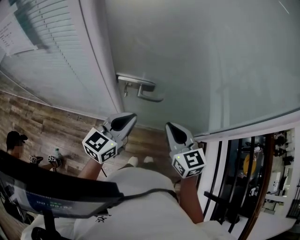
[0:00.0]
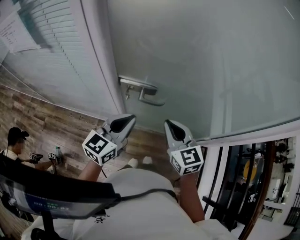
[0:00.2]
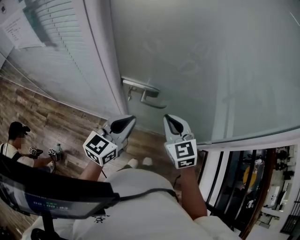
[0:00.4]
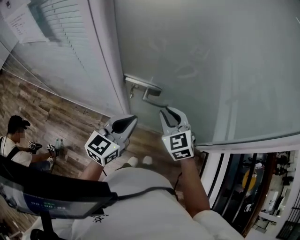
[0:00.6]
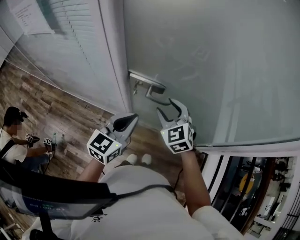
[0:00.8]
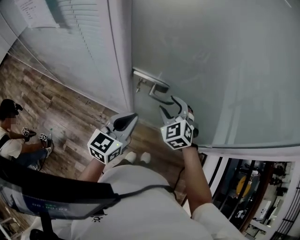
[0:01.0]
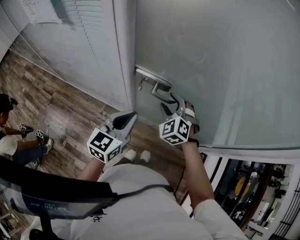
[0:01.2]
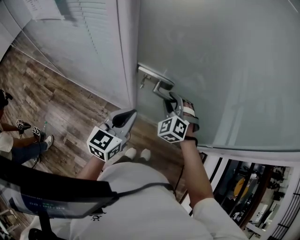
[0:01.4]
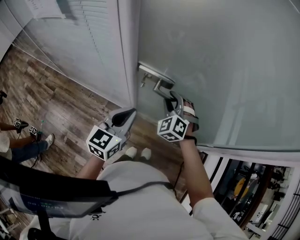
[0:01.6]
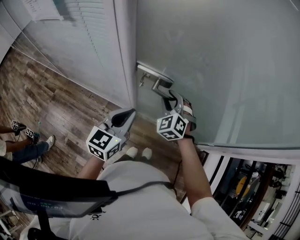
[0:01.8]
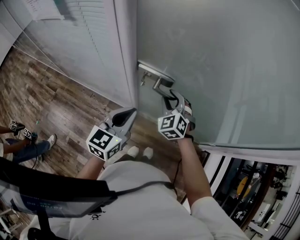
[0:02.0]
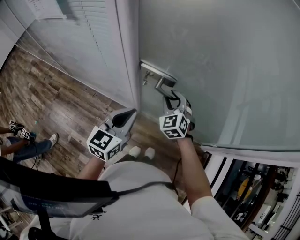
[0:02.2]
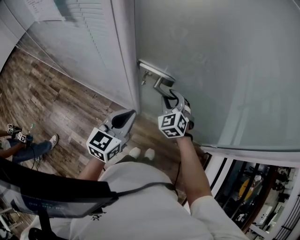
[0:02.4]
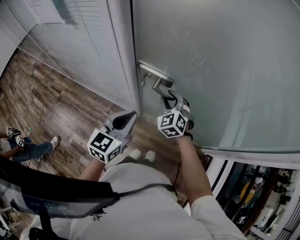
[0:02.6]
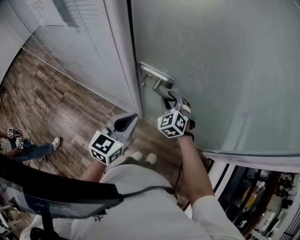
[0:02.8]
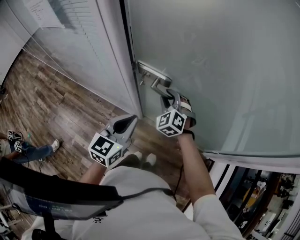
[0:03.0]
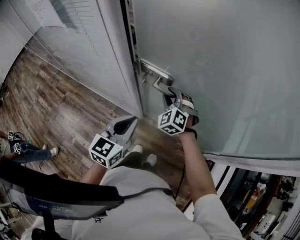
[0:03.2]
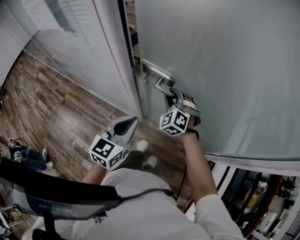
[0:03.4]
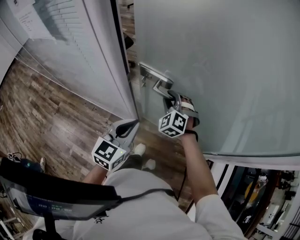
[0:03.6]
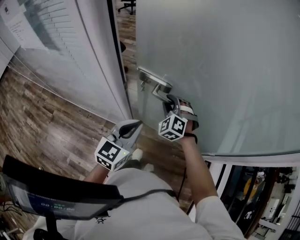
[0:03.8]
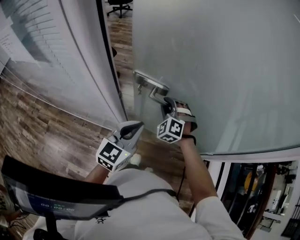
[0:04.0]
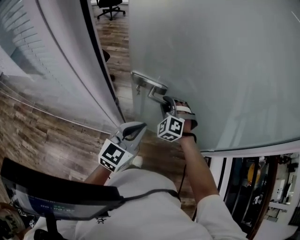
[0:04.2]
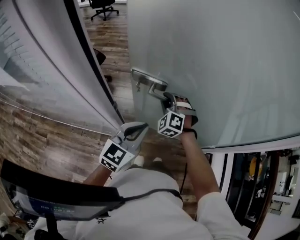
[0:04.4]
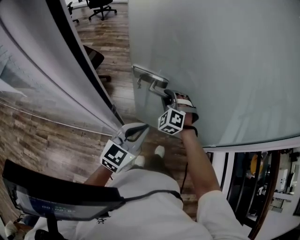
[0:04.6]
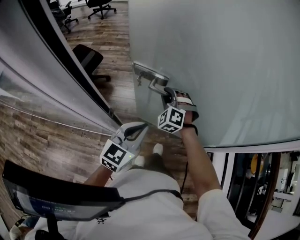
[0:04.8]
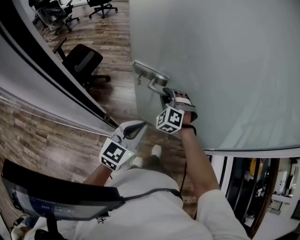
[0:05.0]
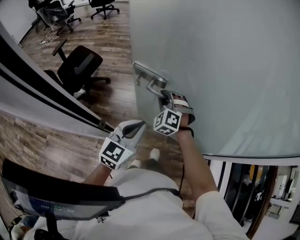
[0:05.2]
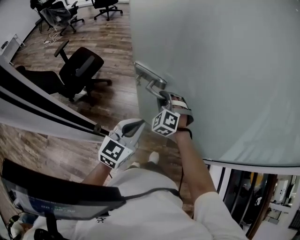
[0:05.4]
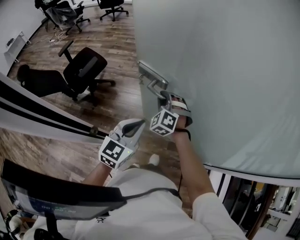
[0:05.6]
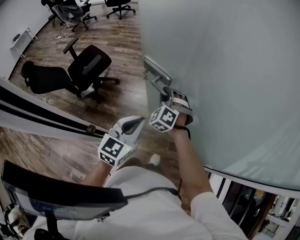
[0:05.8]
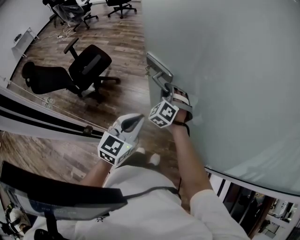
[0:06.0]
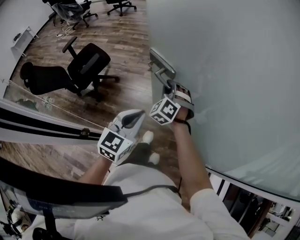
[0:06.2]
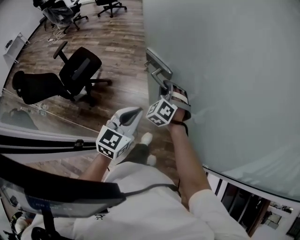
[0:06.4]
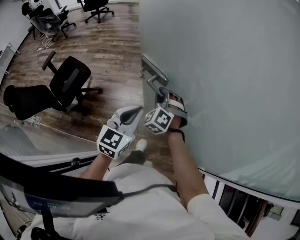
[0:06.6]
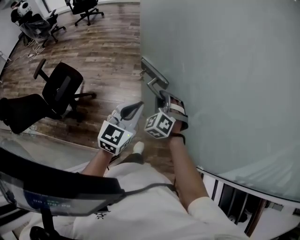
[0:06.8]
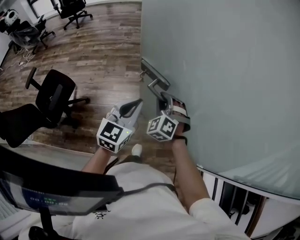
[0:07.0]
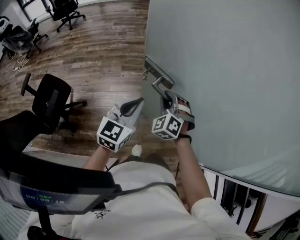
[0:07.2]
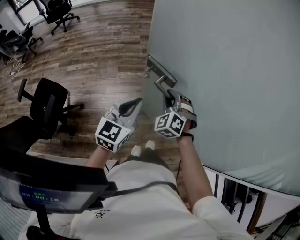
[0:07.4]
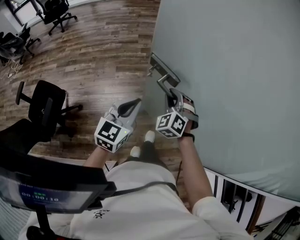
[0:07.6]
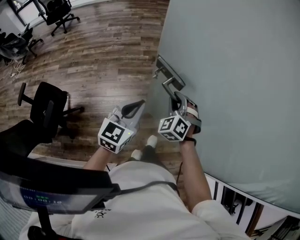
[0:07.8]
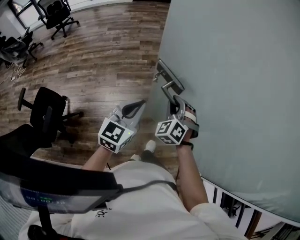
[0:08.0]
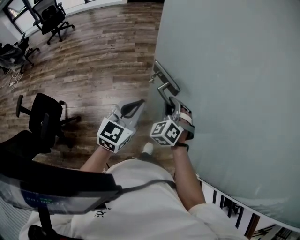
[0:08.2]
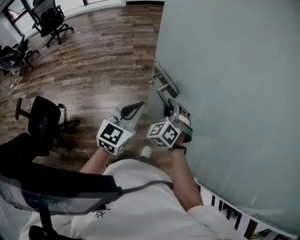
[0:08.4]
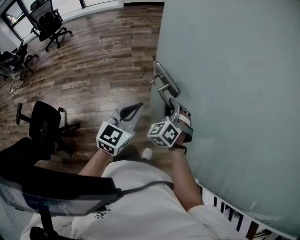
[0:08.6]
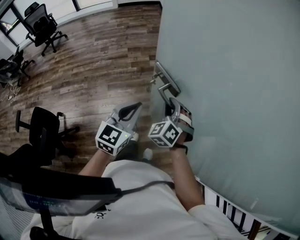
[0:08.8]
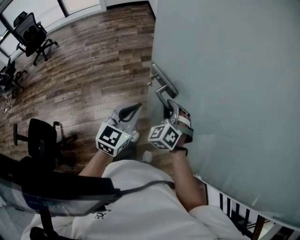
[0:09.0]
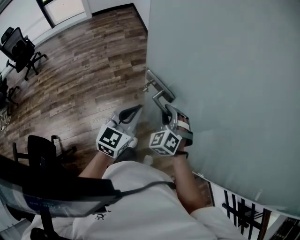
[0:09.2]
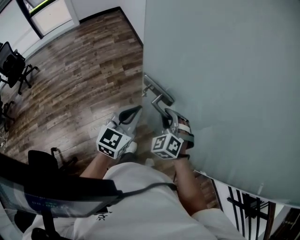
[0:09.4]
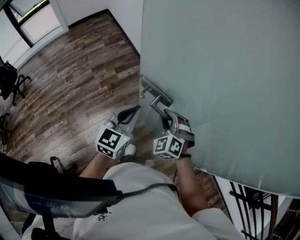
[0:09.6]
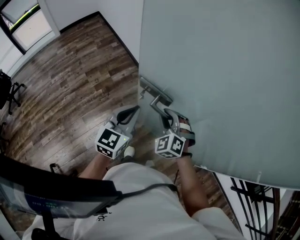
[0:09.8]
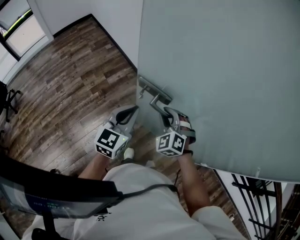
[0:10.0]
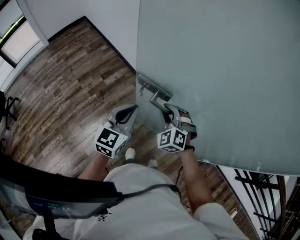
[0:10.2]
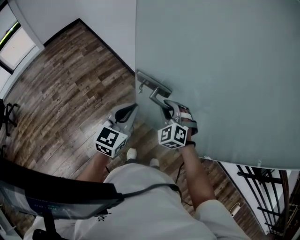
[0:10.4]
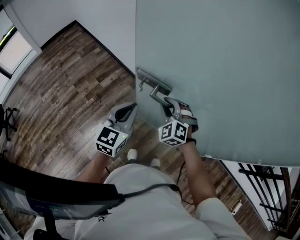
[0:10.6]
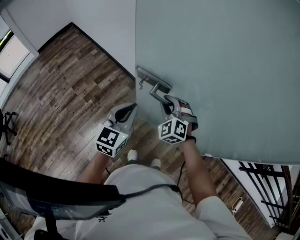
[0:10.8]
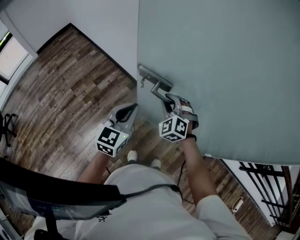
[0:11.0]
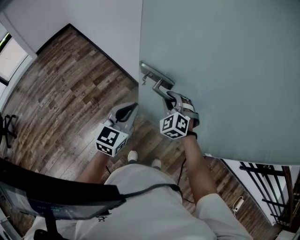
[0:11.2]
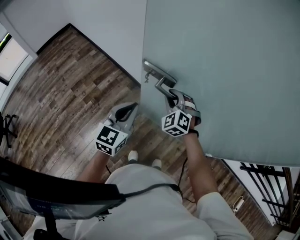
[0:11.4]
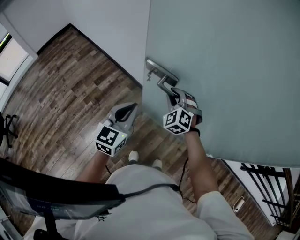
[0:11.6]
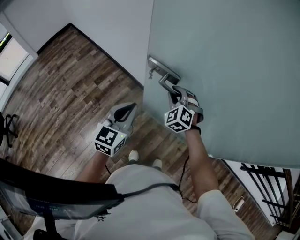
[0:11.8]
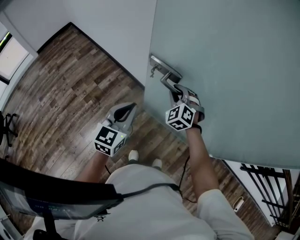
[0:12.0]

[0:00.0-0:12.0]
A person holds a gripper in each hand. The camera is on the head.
0:00.0 to 0:01.6: The right gripper shifts roughly 15 cm forward, downward and to the left, rotates around the line of its fingers by about 60 degrees, counterclockwise from behind, and opens, while the left gripper rotates about 20 degrees.
0:01.6 to 0:03.0: There are only small adjustments of the grippers.
0:03.0 to 0:04.4: The grippers both shift forward by approximately 15 cm. The left gripper turns by about 30 degrees; the right gripper swivels some 20 degrees.
0:04.4 to 0:06.0: Both grippers travel together forward, about 20 cm.
0:06.0 to 0:07.6: The two grippers go some 30 cm forward. The left gripper rotates some 20 degrees. The right gripper swivels about 20 degrees.
0:07.6 to 0:09.0: The right gripper is displaced forward and to the right by some 20 cm; the left gripper heads forward, covering roughly 25 cm.
0:09.0 to 0:10.4: The grippers both shift forward by approximately 10 cm. The left gripper swivels about 30 degrees.
0:10.4 to 0:12.0: The right gripper goes about 10 cm forward.

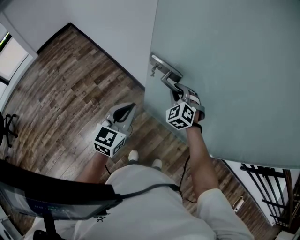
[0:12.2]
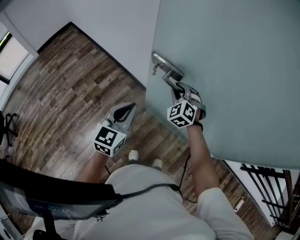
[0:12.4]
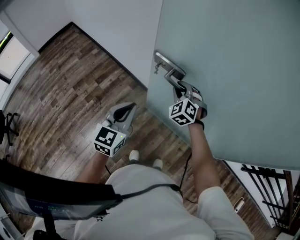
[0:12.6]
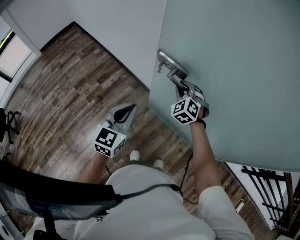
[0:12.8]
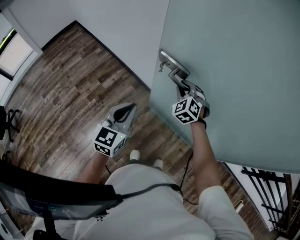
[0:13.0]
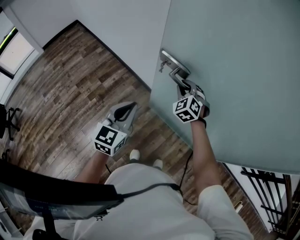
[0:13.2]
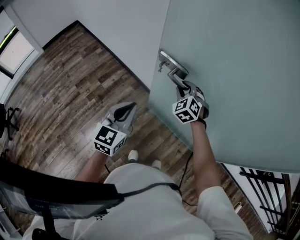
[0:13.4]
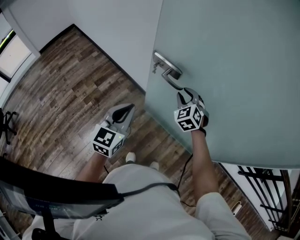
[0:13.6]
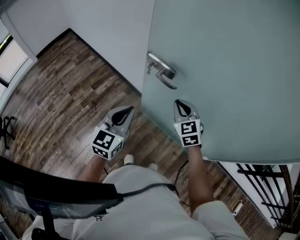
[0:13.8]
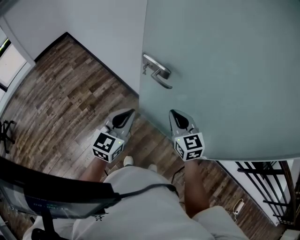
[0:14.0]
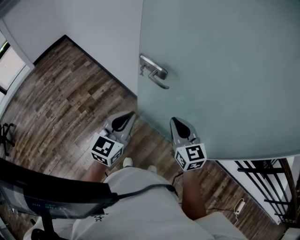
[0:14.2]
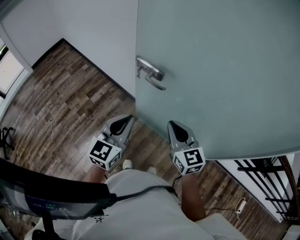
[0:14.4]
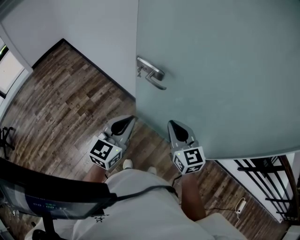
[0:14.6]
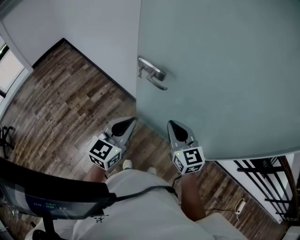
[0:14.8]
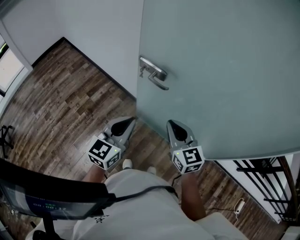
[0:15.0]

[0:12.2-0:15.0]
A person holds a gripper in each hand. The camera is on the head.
0:12.2 to 0:13.6: The grippers stay close to where they were, moving slightly.
0:13.6 to 0:15.0: The left gripper heads to the right, covering about 5 cm, while the right gripper travels backward and upward by about 15 cm, changes its angle by some 40 degrees, and closes its fingers.

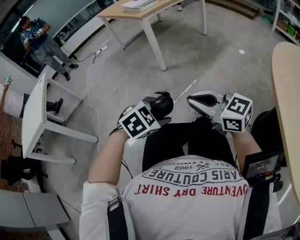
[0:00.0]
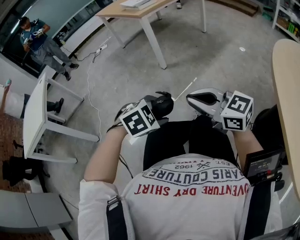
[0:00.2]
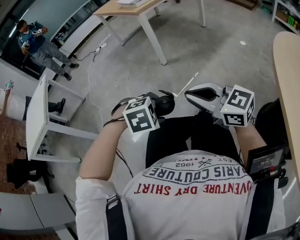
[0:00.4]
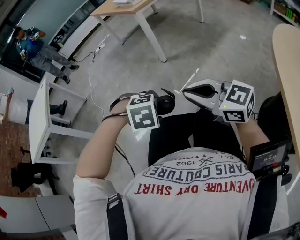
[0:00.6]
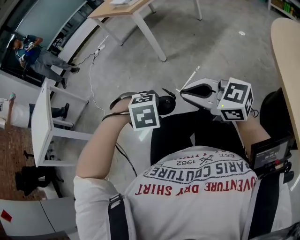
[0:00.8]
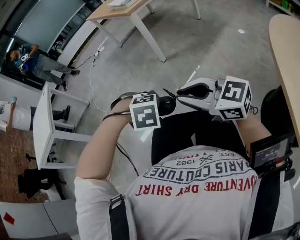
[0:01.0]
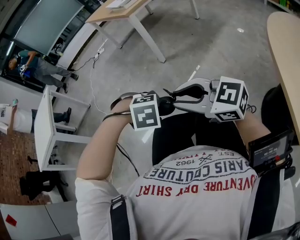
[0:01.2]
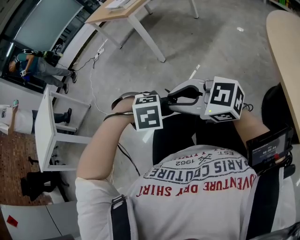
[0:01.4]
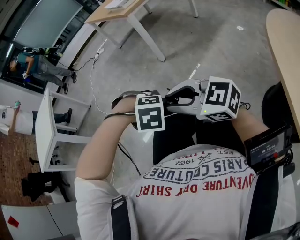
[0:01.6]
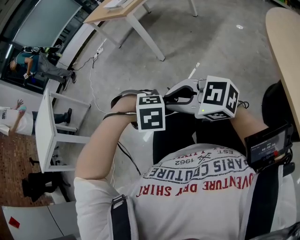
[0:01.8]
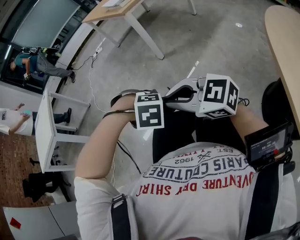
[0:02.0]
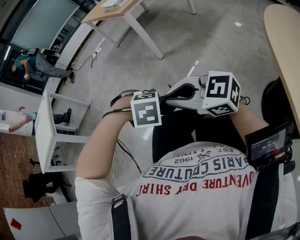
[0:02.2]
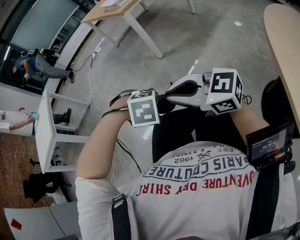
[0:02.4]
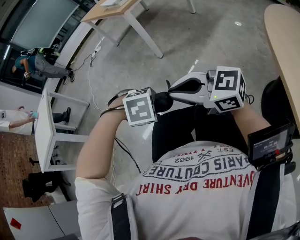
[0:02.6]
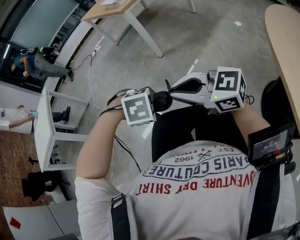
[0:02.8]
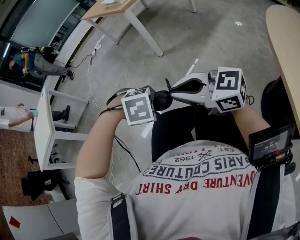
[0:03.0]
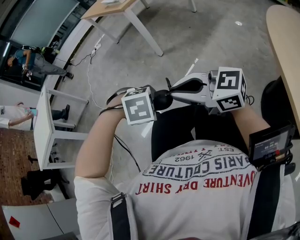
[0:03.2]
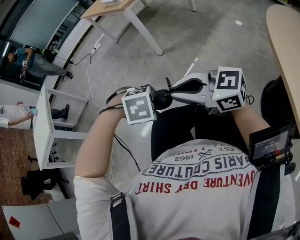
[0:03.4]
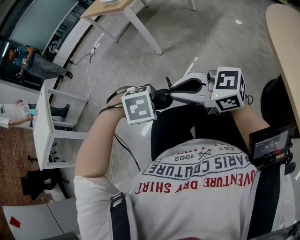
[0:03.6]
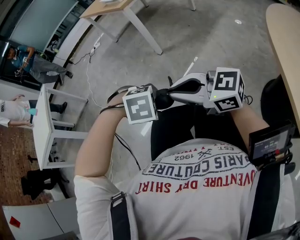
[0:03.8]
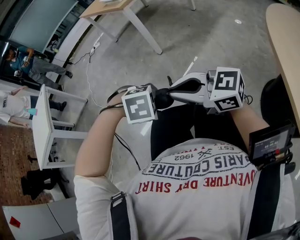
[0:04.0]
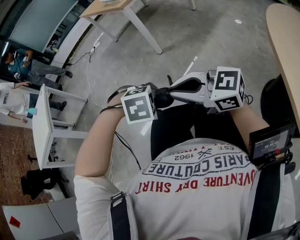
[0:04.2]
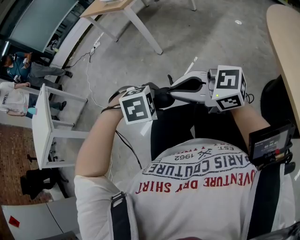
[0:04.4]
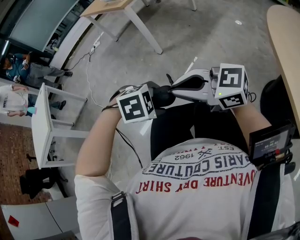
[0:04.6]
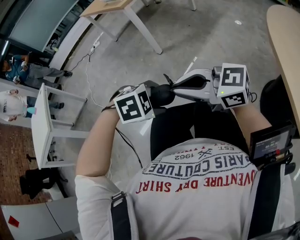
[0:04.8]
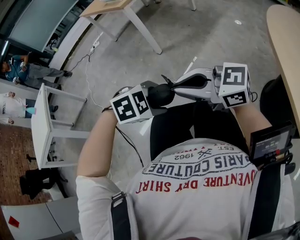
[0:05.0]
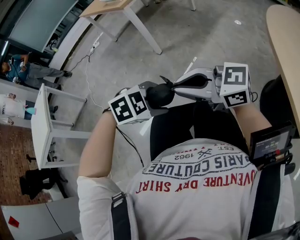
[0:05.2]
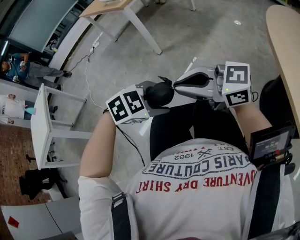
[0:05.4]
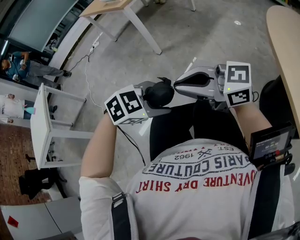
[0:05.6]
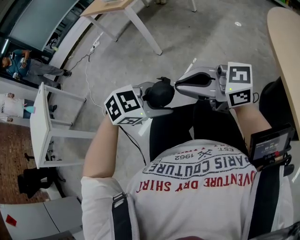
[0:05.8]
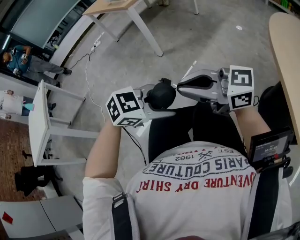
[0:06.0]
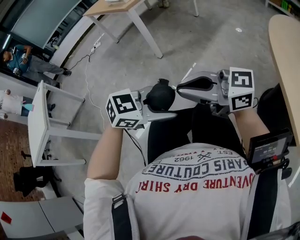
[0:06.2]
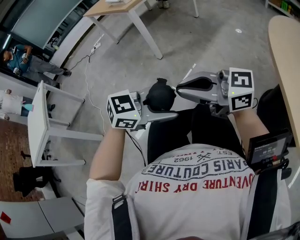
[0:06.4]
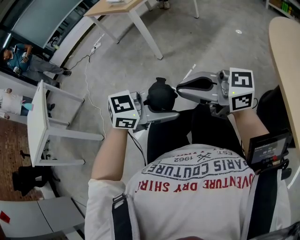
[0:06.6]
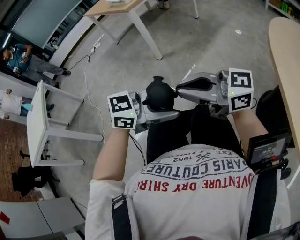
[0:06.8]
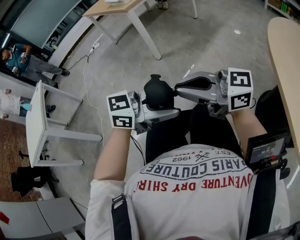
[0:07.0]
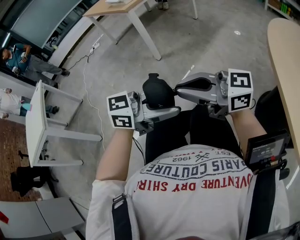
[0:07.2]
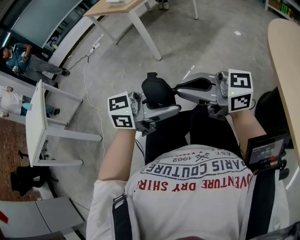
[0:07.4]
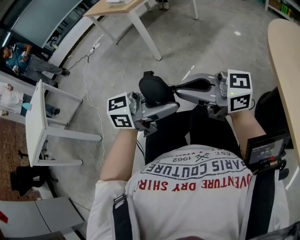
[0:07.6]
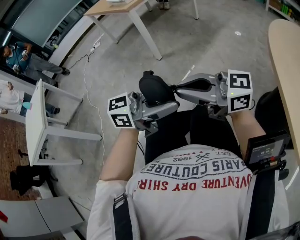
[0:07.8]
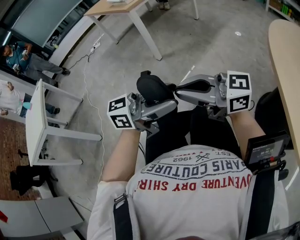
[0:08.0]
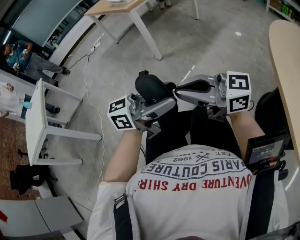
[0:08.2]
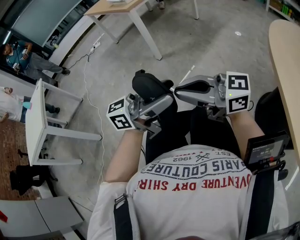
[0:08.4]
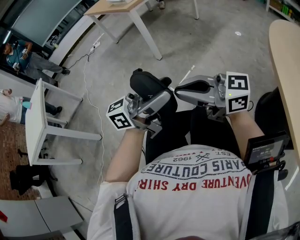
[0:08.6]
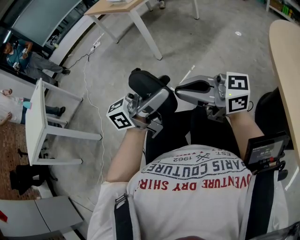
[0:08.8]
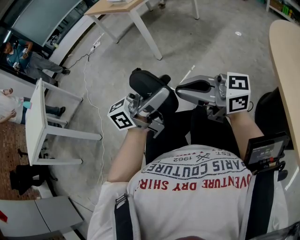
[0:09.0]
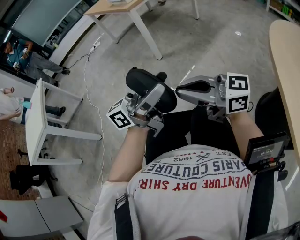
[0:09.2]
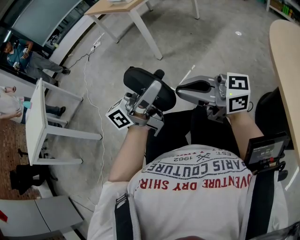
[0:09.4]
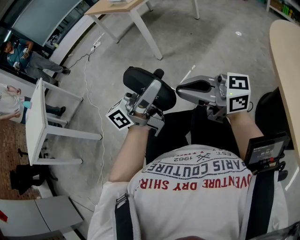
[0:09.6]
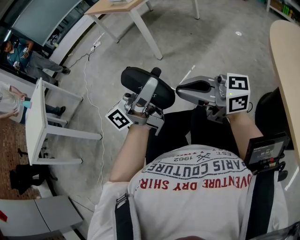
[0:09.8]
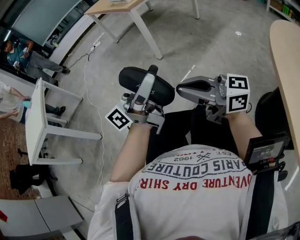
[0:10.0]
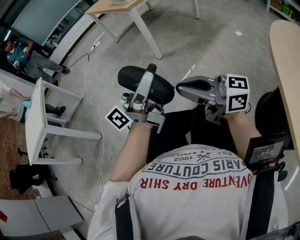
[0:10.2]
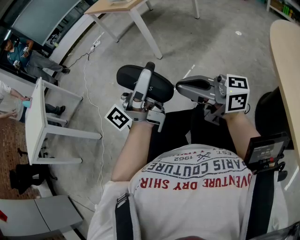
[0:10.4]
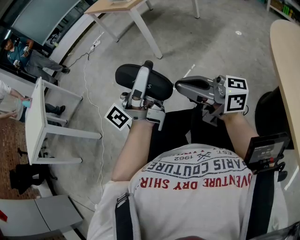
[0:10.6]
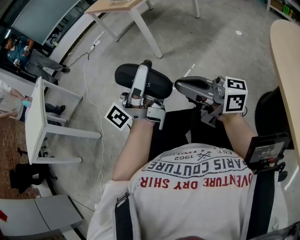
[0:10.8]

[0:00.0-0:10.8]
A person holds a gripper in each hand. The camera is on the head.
0:00.0 to 0:01.6: The right gripper ends up some 5 cm from where it was, and opens. Meanwhile the left gripper changes its angle by some 50 degrees.
0:01.6 to 0:04.6: There are only small adjustments of the grippers.
0:04.6 to 0:06.2: The left gripper shifts roughly 5 cm upward, and points its fingers roughly 40 degrees further upward.
0:06.2 to 0:07.8: The left gripper is displaced upward by about 5 cm, and tips its fingers upward by some 40 degrees.
0:07.8 to 0:09.2: The left gripper changes place by about 5 cm, and changes its angle by roughly 30 degrees.
0:09.2 to 0:10.8: The left gripper moves approximately 5 cm, and changes its angle by approximately 20 degrees.
